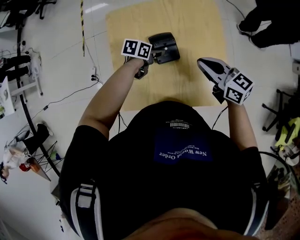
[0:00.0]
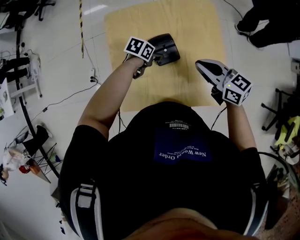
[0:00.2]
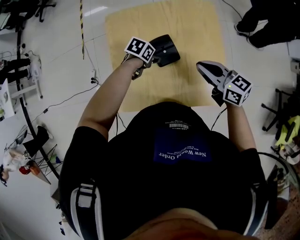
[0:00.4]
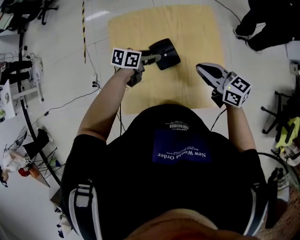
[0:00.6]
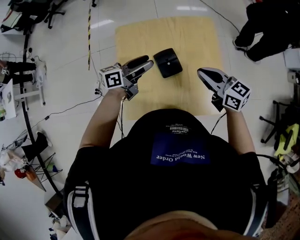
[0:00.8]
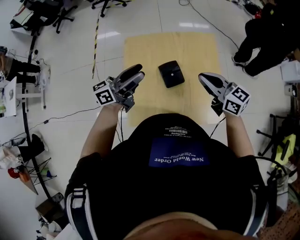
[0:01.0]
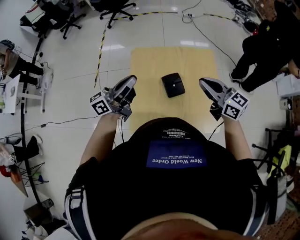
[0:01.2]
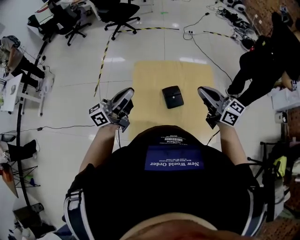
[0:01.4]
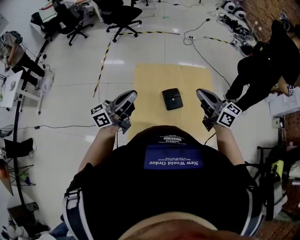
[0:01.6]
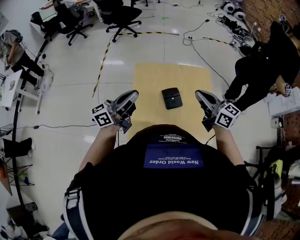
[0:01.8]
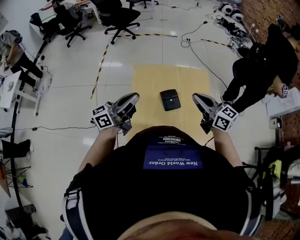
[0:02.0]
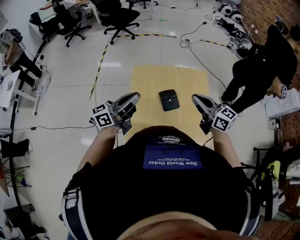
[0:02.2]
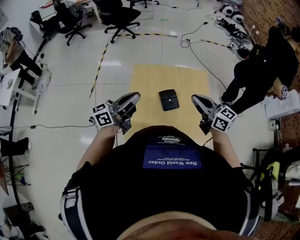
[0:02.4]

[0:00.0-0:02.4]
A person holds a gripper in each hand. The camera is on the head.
0:00.0 to 0:01.2: The left gripper is displaced upward by approximately 35 cm, tilts its fingers approximately 70 degrees upward, and closes its fingers, while the right gripper heads upward, covering about 15 cm.
0:01.2 to 0:02.4: The grippers stay close to where they were, moving slightly.

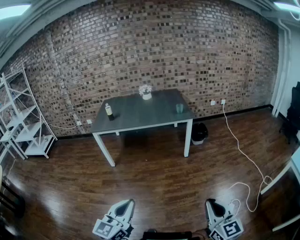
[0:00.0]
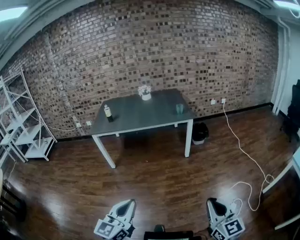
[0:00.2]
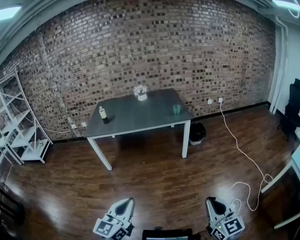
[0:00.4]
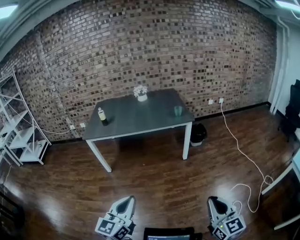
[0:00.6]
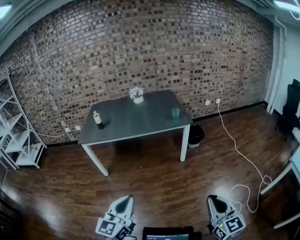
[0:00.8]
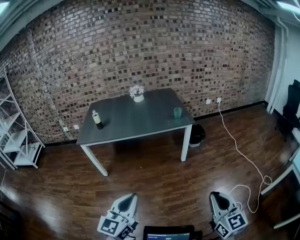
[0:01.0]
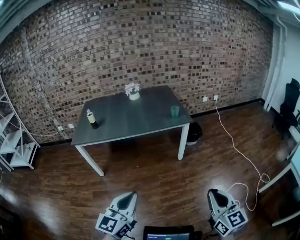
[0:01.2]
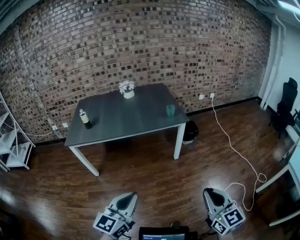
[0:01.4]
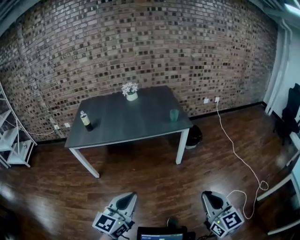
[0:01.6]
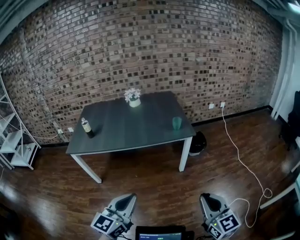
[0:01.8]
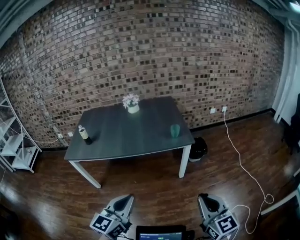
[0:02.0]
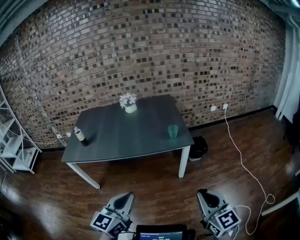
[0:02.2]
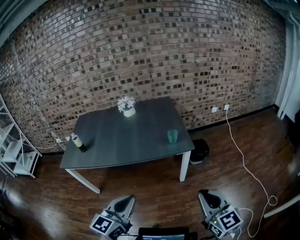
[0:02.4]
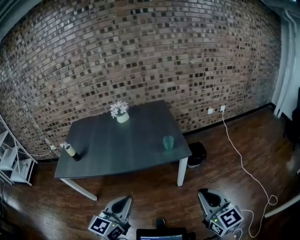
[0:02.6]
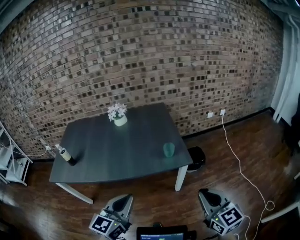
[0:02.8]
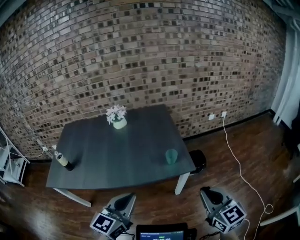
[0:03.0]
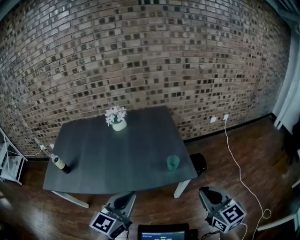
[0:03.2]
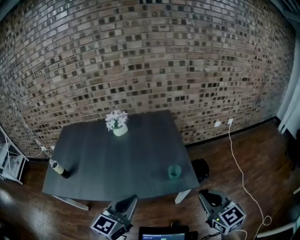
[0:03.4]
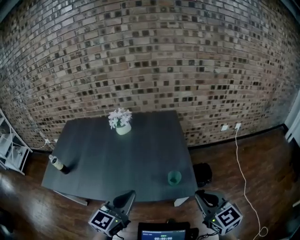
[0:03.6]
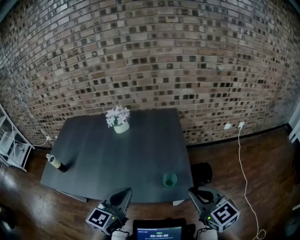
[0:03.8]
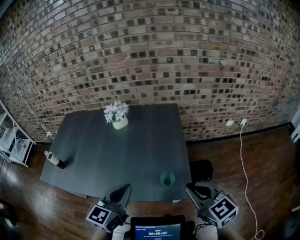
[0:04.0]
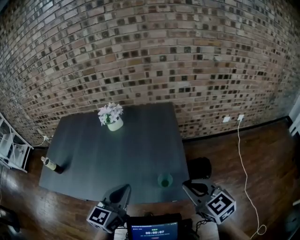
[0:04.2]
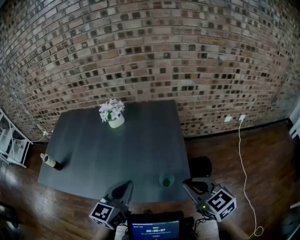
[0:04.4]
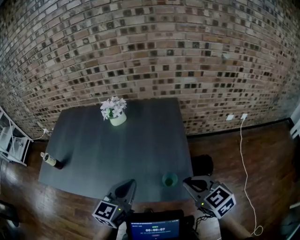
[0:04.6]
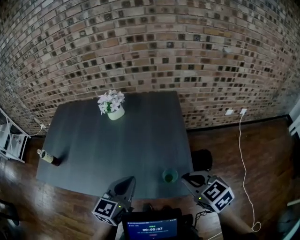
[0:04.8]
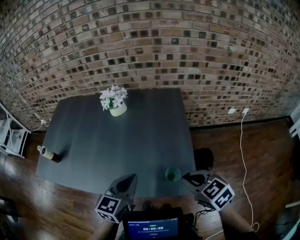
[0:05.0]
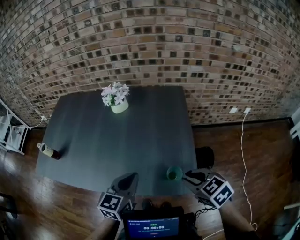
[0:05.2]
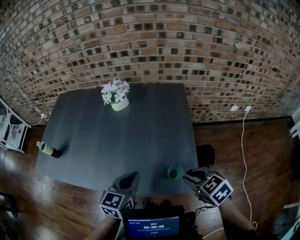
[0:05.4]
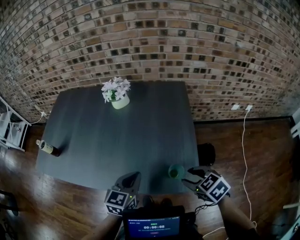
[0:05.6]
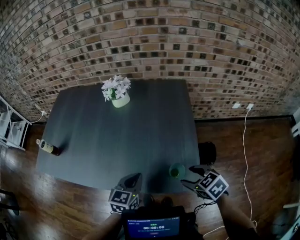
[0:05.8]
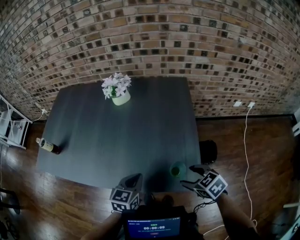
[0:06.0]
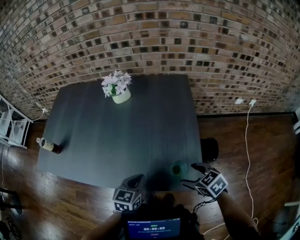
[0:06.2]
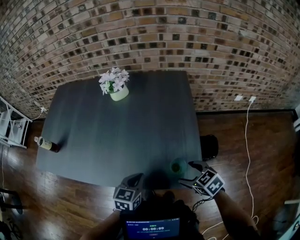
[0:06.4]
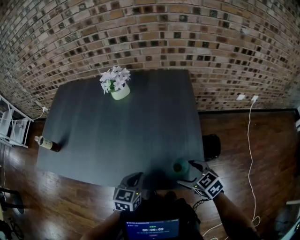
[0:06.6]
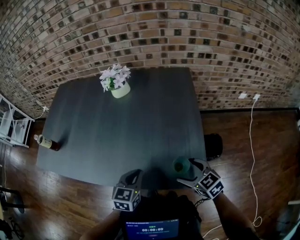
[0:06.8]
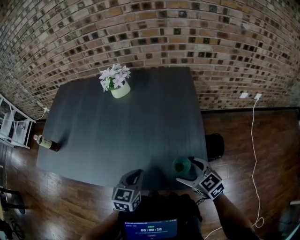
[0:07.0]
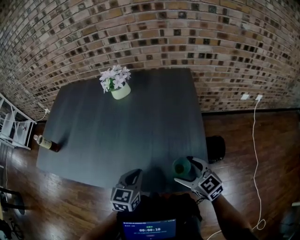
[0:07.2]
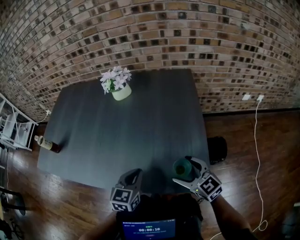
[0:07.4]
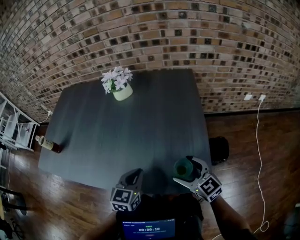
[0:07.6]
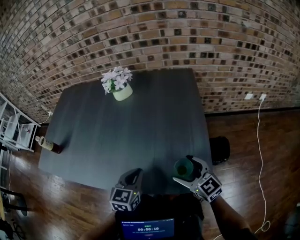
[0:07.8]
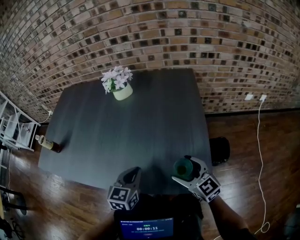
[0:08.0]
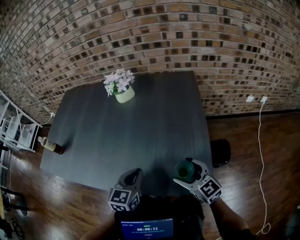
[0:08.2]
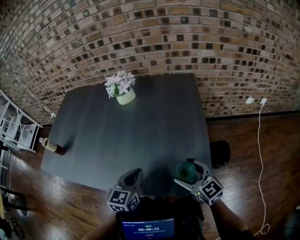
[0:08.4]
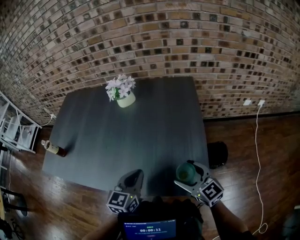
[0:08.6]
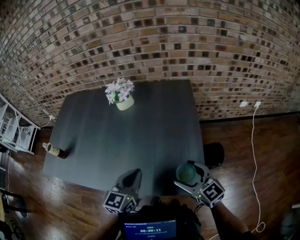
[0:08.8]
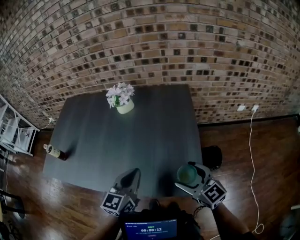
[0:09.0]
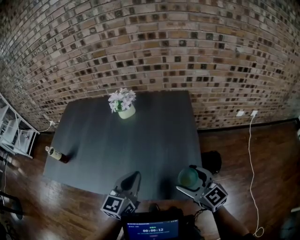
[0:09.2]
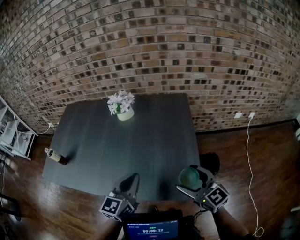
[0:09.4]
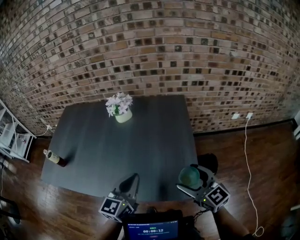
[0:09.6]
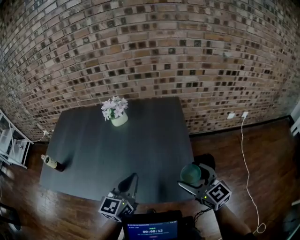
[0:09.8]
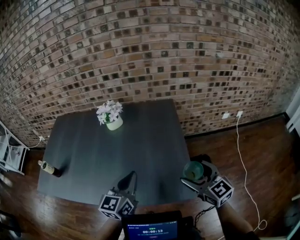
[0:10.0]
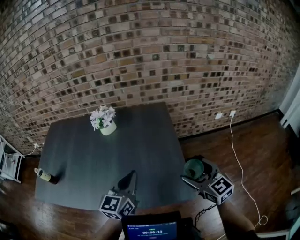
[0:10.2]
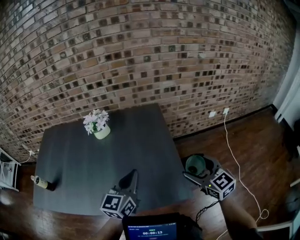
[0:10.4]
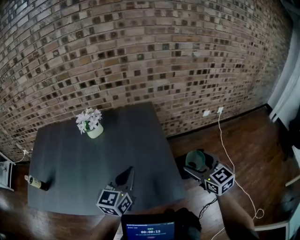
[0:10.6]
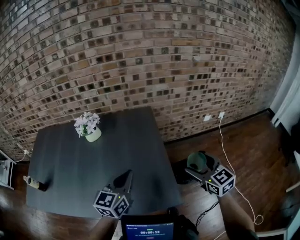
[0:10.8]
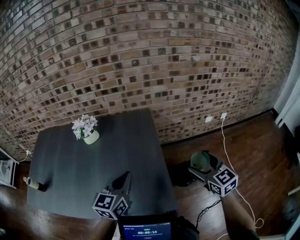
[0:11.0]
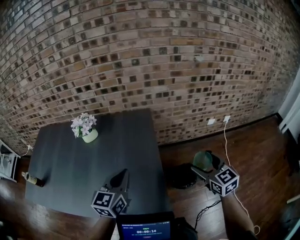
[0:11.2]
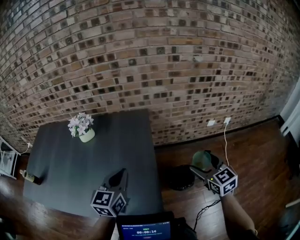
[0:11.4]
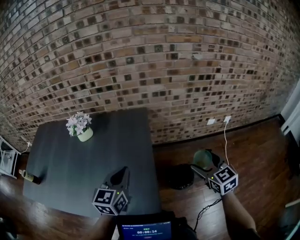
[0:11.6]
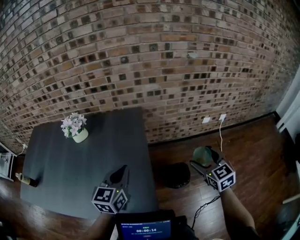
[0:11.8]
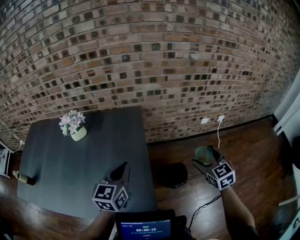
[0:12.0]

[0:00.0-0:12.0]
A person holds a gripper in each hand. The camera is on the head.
0:00.0 to 0:01.6: The grippers both shift forward by some 30 cm.
0:01.6 to 0:03.0: The grippers both shift forward by about 40 cm.
0:03.0 to 0:04.4: Both grippers move forward, about 25 cm. The right gripper rotates approximately 30 degrees.
0:04.4 to 0:06.0: Both grippers travel together downward, approximately 15 cm. The right gripper changes its angle by some 30 degrees, and opens its fingers, while the left gripper rotates approximately 20 degrees.
0:06.0 to 0:07.6: The right gripper shifts by roughly 5 cm, and tips its fingers upward by approximately 30 degrees.
0:07.6 to 0:09.0: The grippers both shift upward by some 15 cm.
0:09.0 to 0:10.4: The left gripper moves to the right and upward, roughly 10 cm, while the right gripper travels to the right and upward by about 10 cm, and rotates roughly 20 degrees.
0:10.4 to 0:12.0: The right gripper is displaced to the right and forward by roughly 30 cm. Meanwhile the left gripper moves to the right and forward, approximately 20 cm.

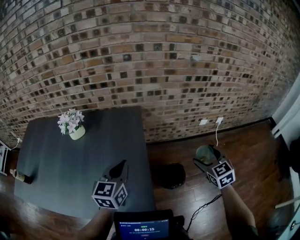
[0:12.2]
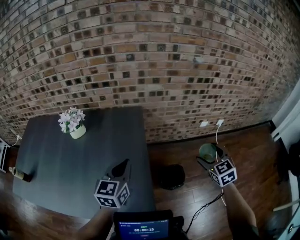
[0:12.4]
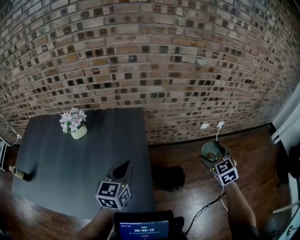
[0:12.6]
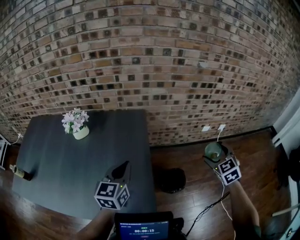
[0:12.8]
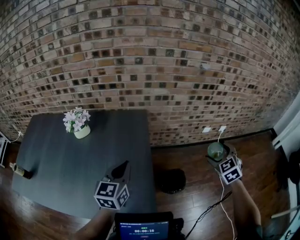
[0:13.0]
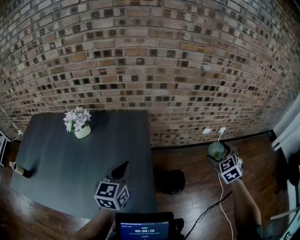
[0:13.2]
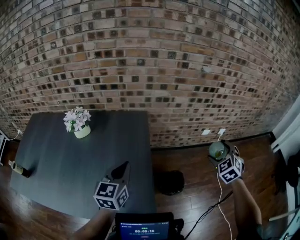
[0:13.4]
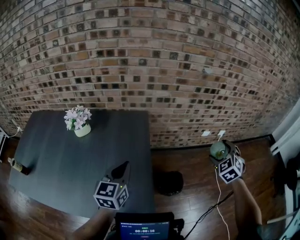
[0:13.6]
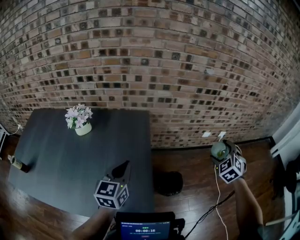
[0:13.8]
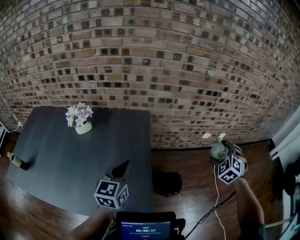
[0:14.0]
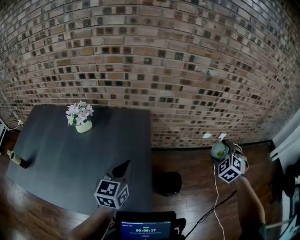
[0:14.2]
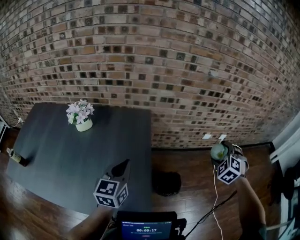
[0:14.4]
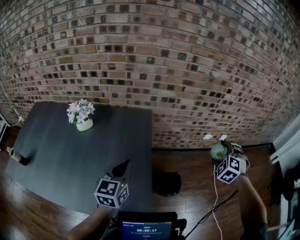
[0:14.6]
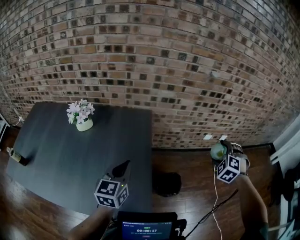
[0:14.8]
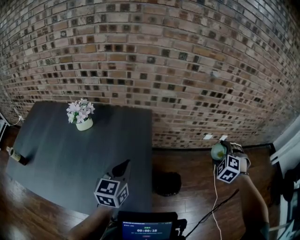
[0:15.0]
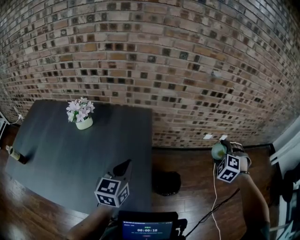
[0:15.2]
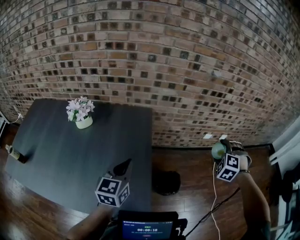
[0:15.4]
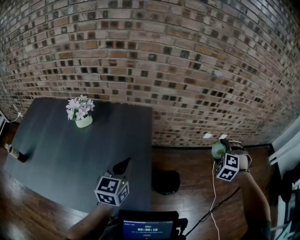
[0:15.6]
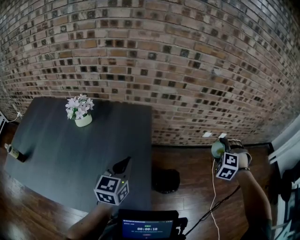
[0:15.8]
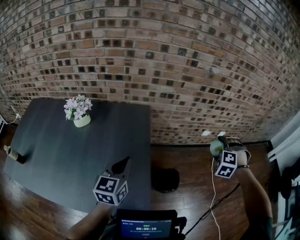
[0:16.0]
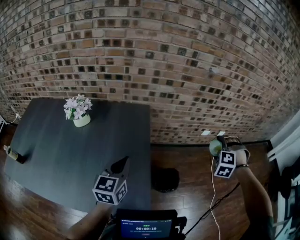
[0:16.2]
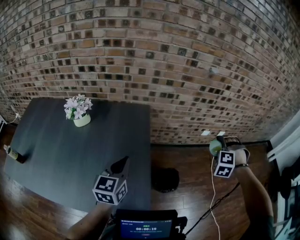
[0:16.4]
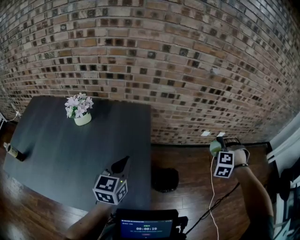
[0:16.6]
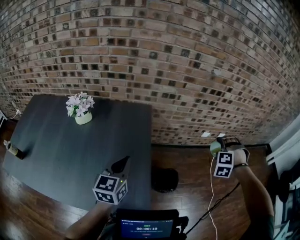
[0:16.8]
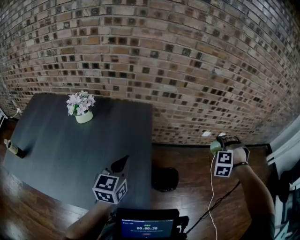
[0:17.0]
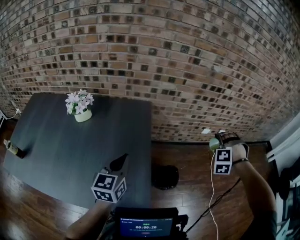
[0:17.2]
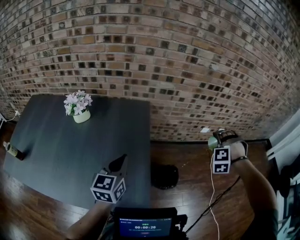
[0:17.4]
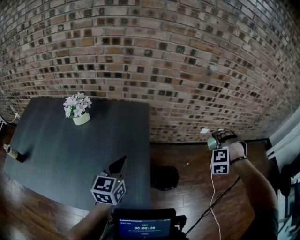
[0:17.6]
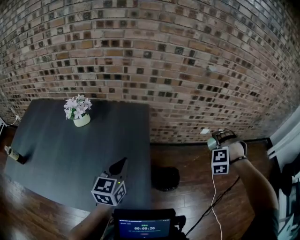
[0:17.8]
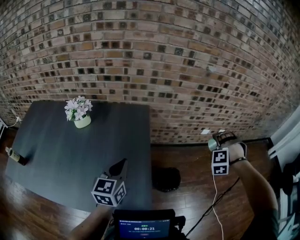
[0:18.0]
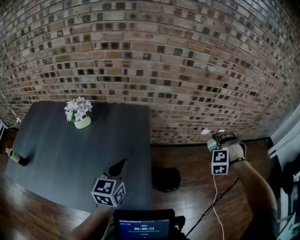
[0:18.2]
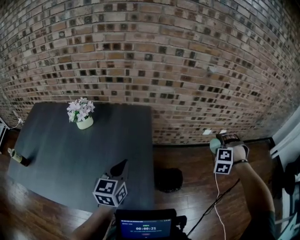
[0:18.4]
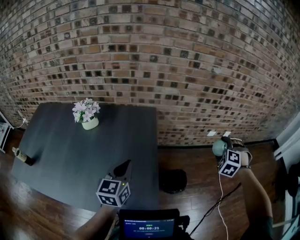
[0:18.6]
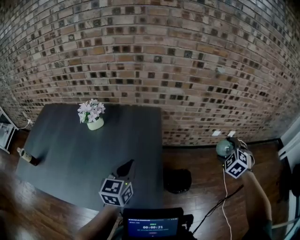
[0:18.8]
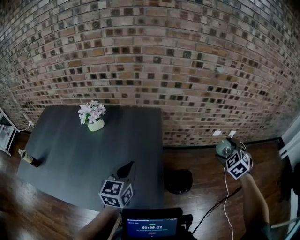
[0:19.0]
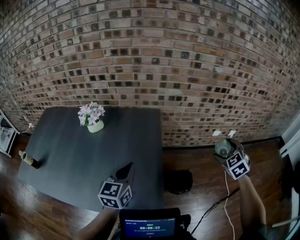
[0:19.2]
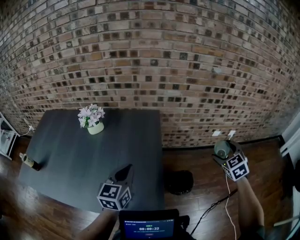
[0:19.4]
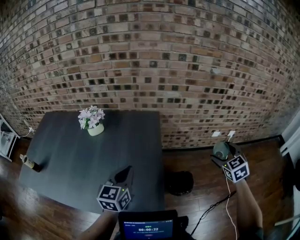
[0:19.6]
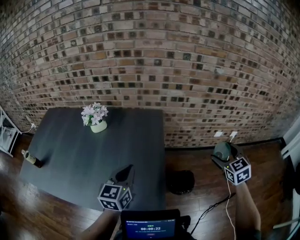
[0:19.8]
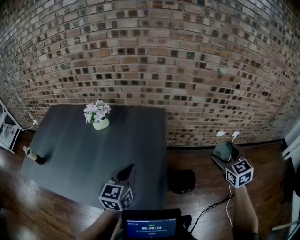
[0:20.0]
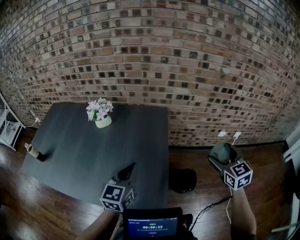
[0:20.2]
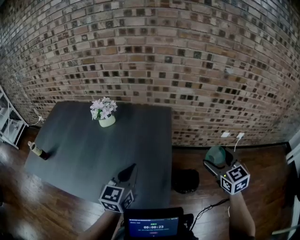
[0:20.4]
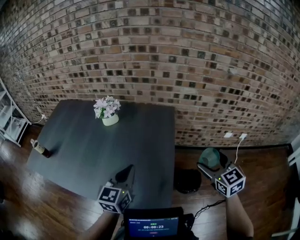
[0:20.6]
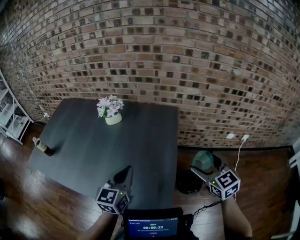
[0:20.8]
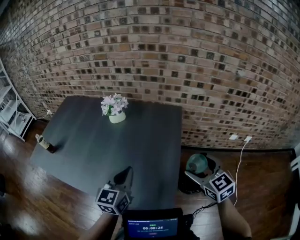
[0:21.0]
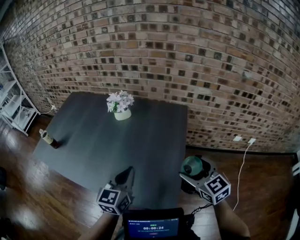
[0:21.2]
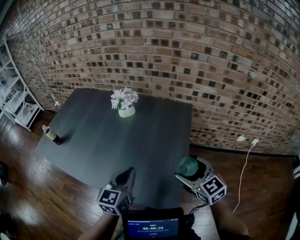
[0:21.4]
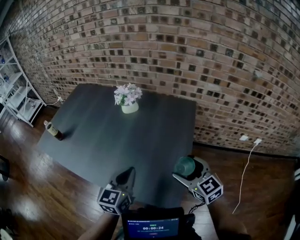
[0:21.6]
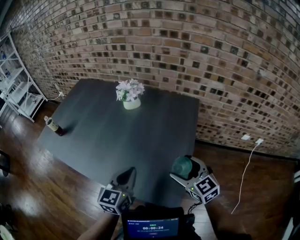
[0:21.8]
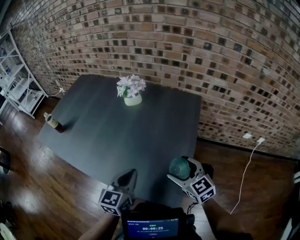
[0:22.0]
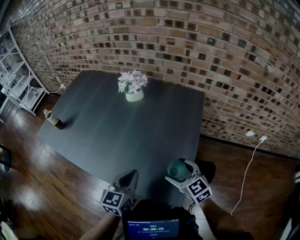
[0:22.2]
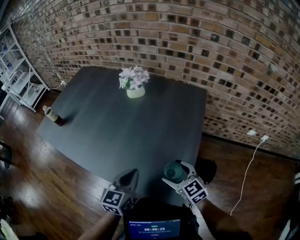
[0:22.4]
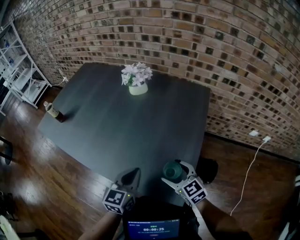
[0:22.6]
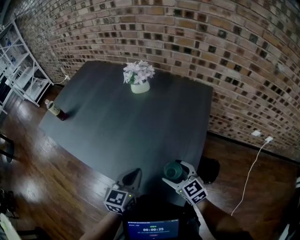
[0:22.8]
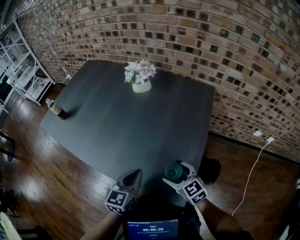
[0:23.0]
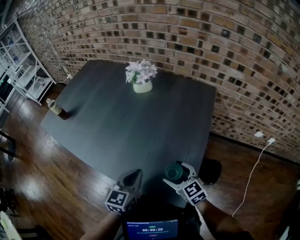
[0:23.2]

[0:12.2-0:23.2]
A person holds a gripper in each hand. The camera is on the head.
0:12.2 to 0:13.8: The right gripper travels forward and to the right by roughly 10 cm, and turns by some 40 degrees.
0:13.8 to 0:15.4: The right gripper turns by roughly 30 degrees.
0:15.4 to 0:17.0: The right gripper rotates approximately 20 degrees.
0:17.0 to 0:18.4: There are only small adjustments of the grippers.
0:18.4 to 0:20.0: The right gripper moves roughly 10 cm, and rotates around the line of its fingers by roughly 70 degrees, clockwise from behind. The left gripper moves about 5 cm.
0:20.0 to 0:21.6: The right gripper shifts by approximately 30 cm, and swivels roughly 40 degrees; the left gripper changes place by about 10 cm.
0:21.6 to 0:23.2: The left gripper goes roughly 10 cm downward; the right gripper is displaced downward and to the left by approximately 20 cm.
